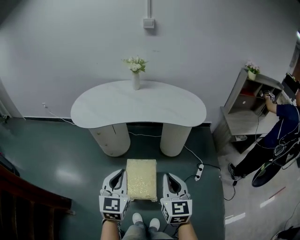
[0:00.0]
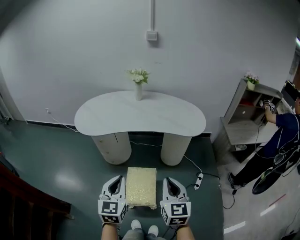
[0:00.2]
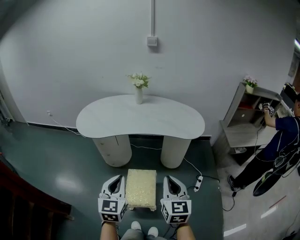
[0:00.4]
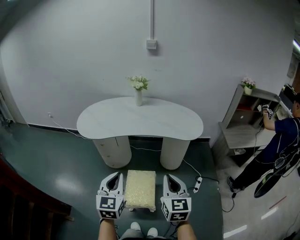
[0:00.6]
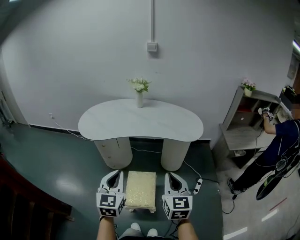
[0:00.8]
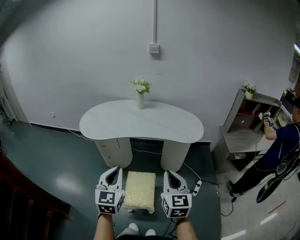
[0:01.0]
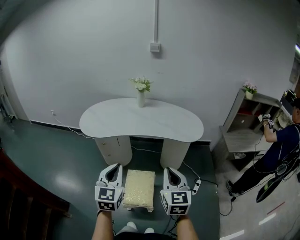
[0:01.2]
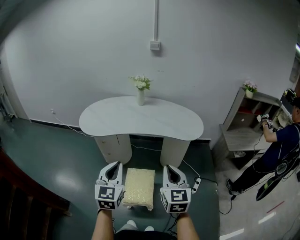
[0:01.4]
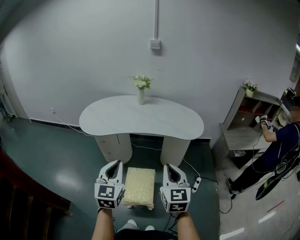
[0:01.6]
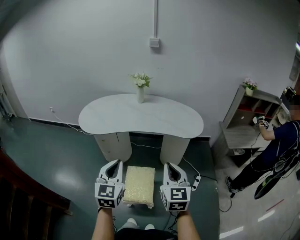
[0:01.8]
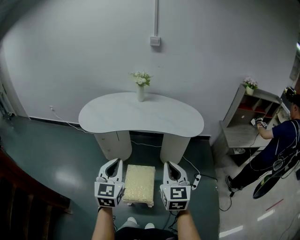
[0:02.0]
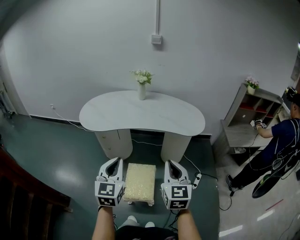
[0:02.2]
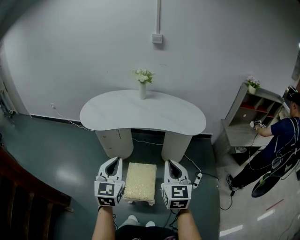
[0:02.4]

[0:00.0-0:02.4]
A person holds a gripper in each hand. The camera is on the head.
0:00.0 to 0:01.2: The two grippers go roughly 10 cm upward.
0:01.2 to 0:02.4: The grippers make only small movements.

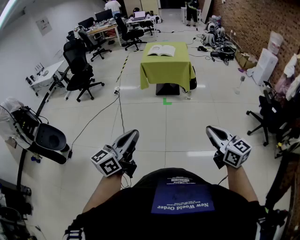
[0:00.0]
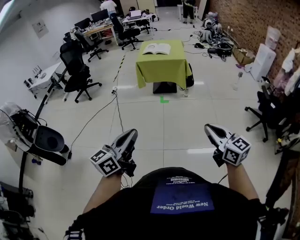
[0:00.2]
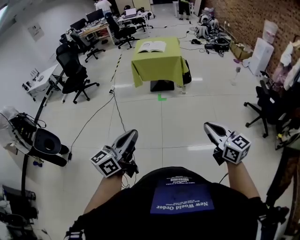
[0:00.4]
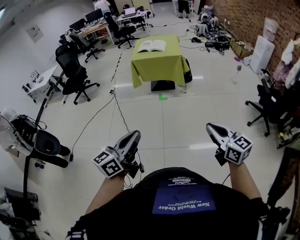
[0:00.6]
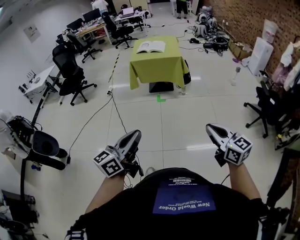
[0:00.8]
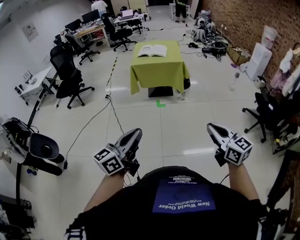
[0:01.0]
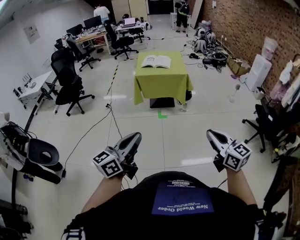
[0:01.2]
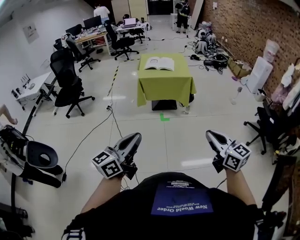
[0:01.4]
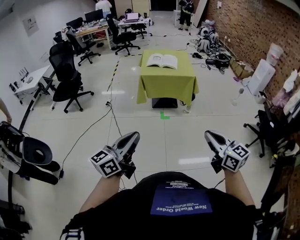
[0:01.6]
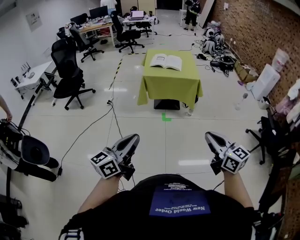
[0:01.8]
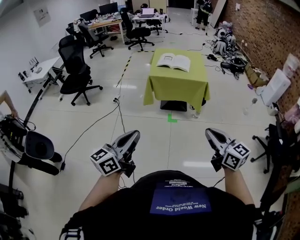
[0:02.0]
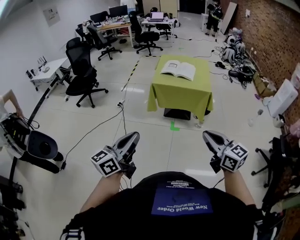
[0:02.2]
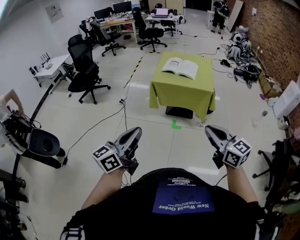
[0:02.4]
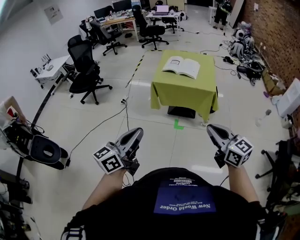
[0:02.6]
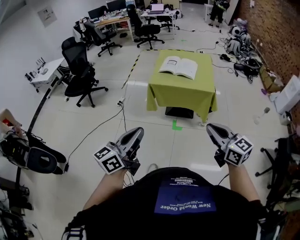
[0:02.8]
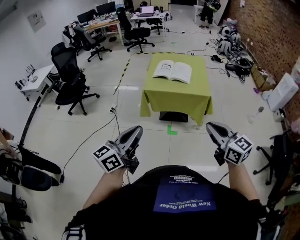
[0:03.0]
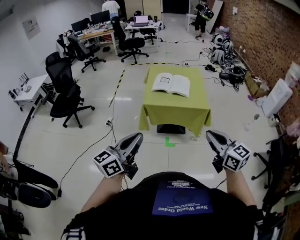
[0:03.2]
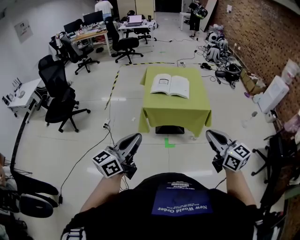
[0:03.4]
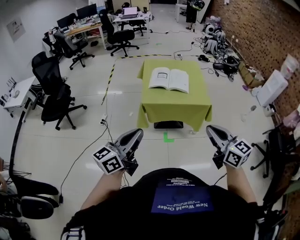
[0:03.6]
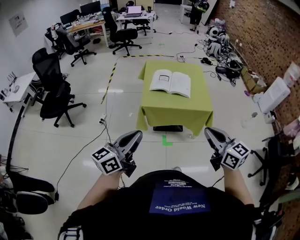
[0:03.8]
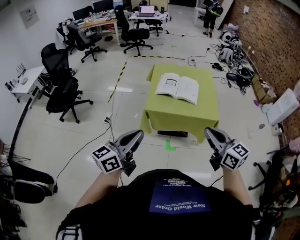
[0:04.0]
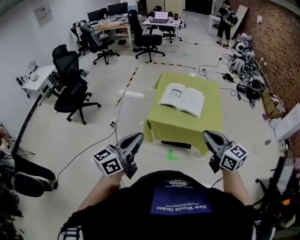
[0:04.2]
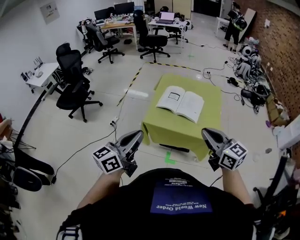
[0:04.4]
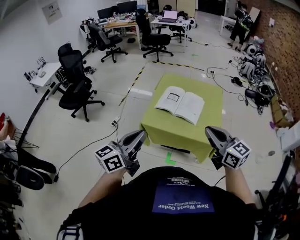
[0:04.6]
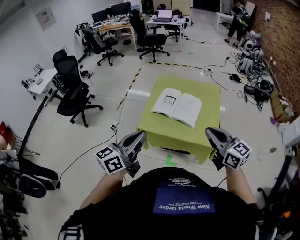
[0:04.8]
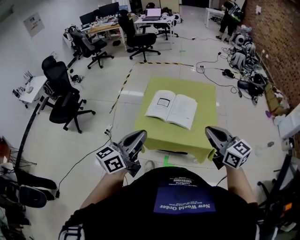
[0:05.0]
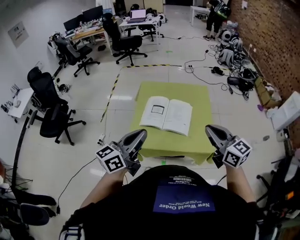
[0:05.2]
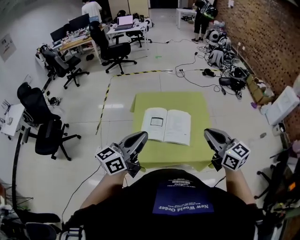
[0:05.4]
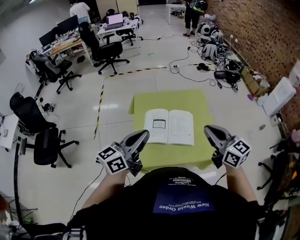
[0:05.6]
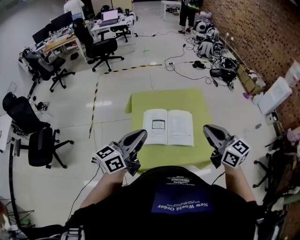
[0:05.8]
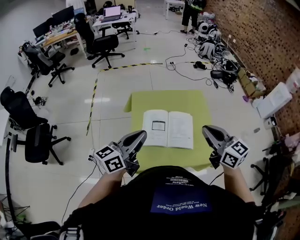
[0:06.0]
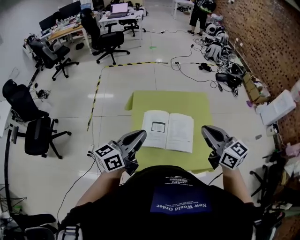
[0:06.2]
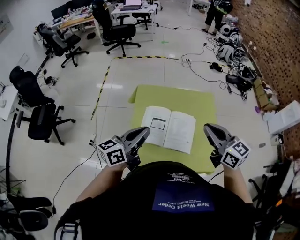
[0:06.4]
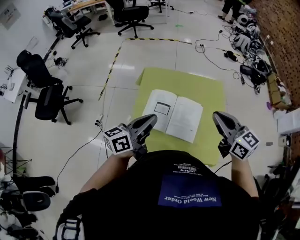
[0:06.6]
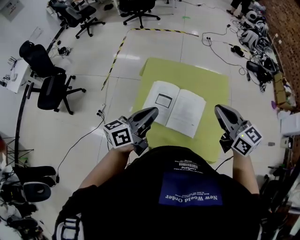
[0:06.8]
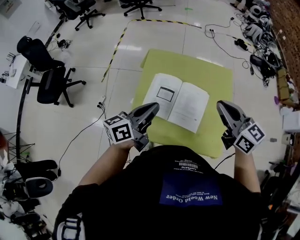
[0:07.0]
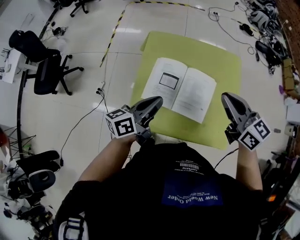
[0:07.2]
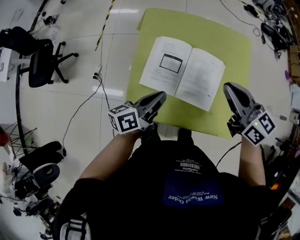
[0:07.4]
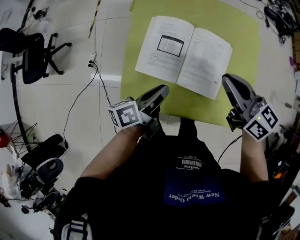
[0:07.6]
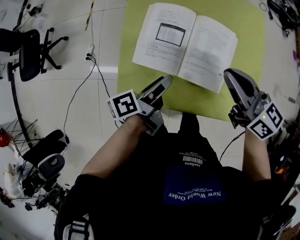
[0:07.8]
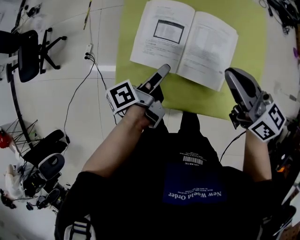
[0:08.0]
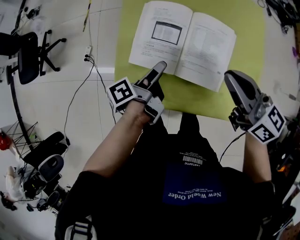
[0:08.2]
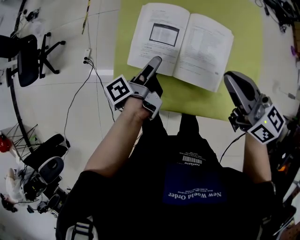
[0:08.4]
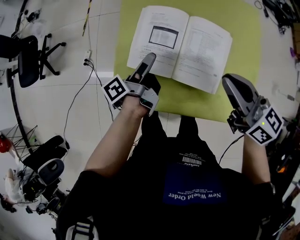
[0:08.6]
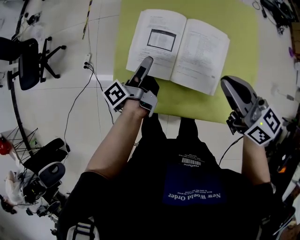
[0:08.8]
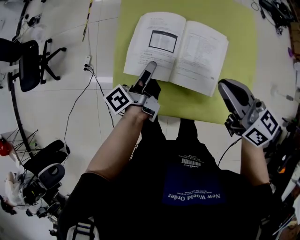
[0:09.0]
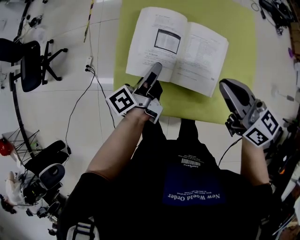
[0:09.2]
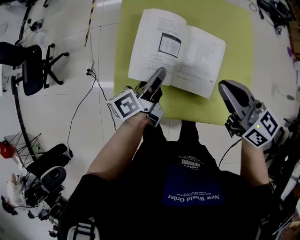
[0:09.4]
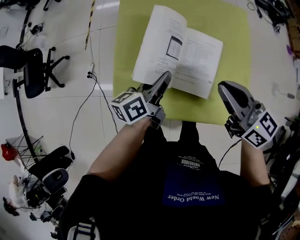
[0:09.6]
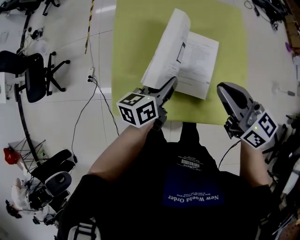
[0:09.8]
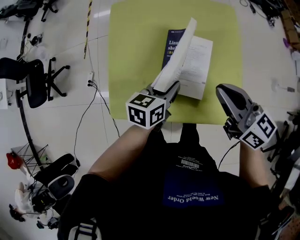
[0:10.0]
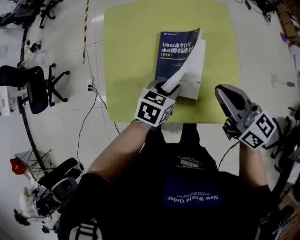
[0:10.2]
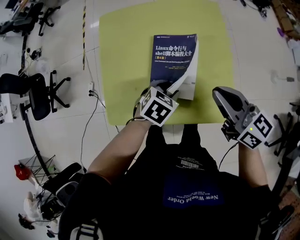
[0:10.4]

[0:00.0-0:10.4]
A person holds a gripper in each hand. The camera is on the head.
0:00.0 to 0:01.4: Both grippers travel together forward and to the left, roughly 25 cm.
0:01.4 to 0:03.0: The grippers both shift forward by approximately 40 cm.
0:03.0 to 0:04.4: The two grippers go roughly 30 cm forward.
0:04.4 to 0:06.0: The grippers both shift forward by roughly 30 cm. The right gripper rotates roughly 20 degrees, while the left gripper turns by some 30 degrees.
0:06.0 to 0:07.4: The left gripper travels downward and to the right by some 25 cm, and rotates approximately 40 degrees. Meanwhile the right gripper goes roughly 15 cm downward and forward, and changes its angle by roughly 20 degrees.
0:07.4 to 0:09.0: Both grippers move downward, about 5 cm. The left gripper turns by about 30 degrees, and opens and closes again.
0:09.0 to 0:10.4: The left gripper travels to the right by approximately 20 cm, and points its fingers some 50 degrees further downward. Meanwhile the right gripper shifts approximately 10 cm to the right.

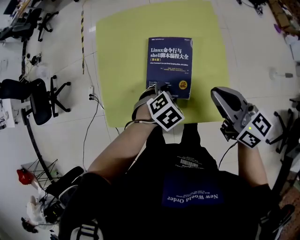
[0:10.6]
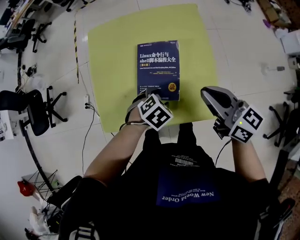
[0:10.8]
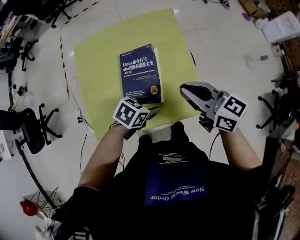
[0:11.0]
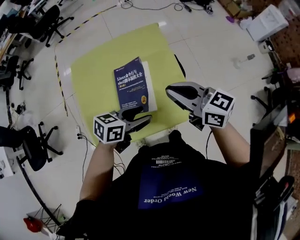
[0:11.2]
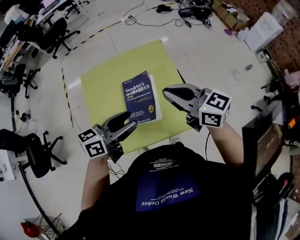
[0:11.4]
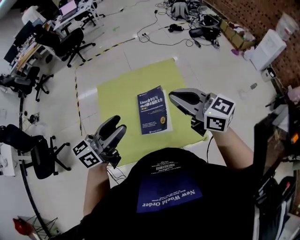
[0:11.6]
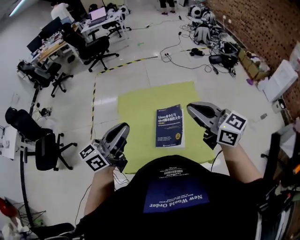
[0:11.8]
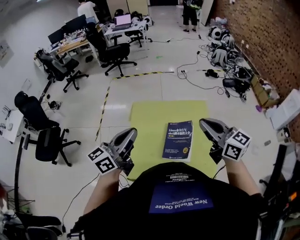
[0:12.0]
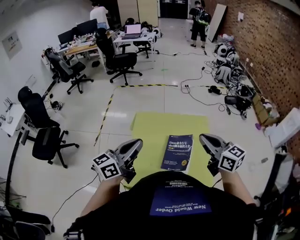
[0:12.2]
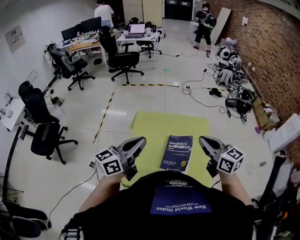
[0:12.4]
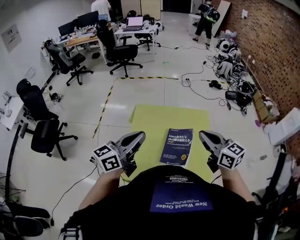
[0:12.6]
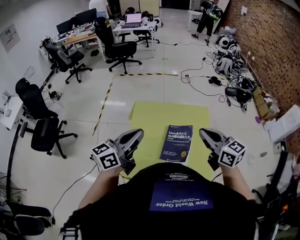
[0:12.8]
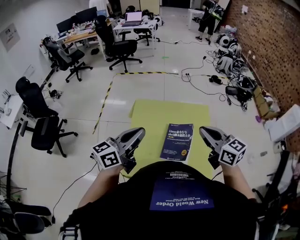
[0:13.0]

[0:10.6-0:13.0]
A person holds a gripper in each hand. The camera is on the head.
0:10.6 to 0:11.8: The left gripper is displaced upward by roughly 40 cm, points its fingers roughly 80 degrees further upward, and closes its fingers. The right gripper moves upward, approximately 20 cm, and rotates roughly 20 degrees.
0:11.8 to 0:13.0: The right gripper ends up roughly 5 cm from where it was.

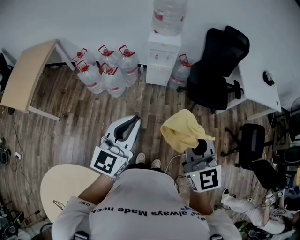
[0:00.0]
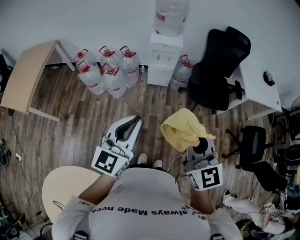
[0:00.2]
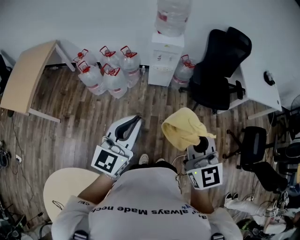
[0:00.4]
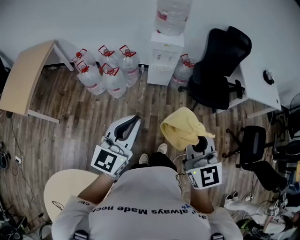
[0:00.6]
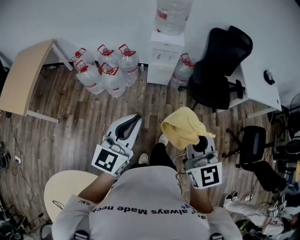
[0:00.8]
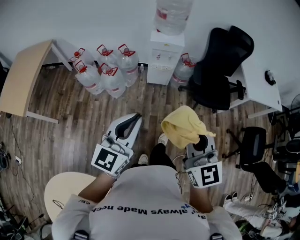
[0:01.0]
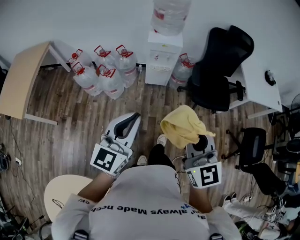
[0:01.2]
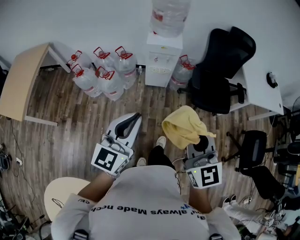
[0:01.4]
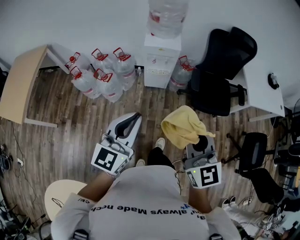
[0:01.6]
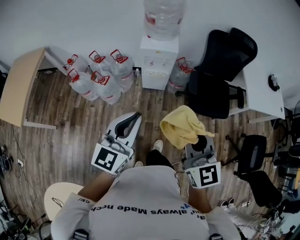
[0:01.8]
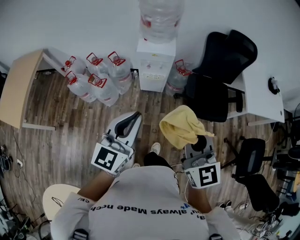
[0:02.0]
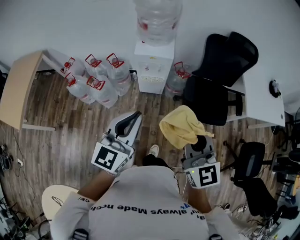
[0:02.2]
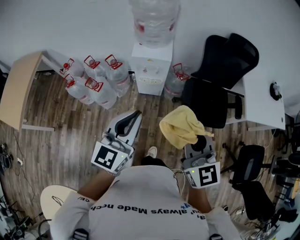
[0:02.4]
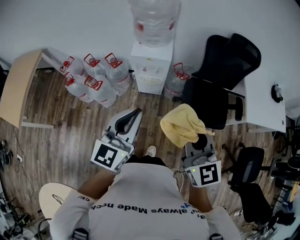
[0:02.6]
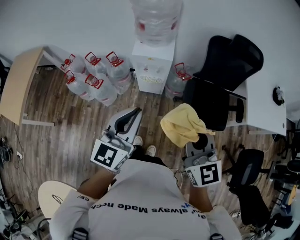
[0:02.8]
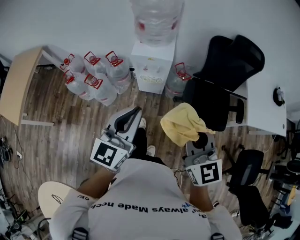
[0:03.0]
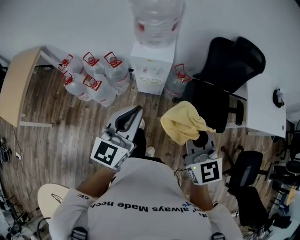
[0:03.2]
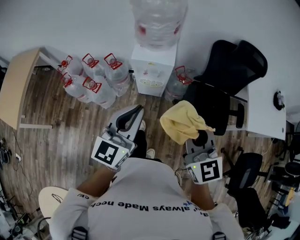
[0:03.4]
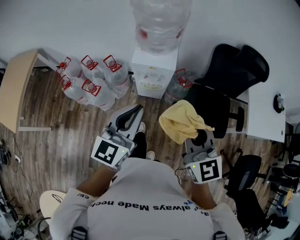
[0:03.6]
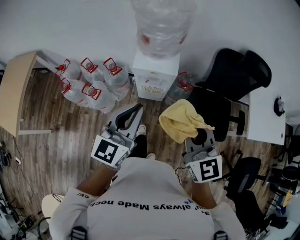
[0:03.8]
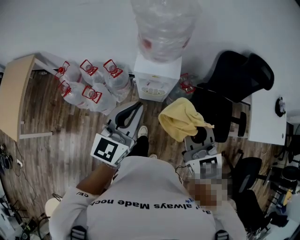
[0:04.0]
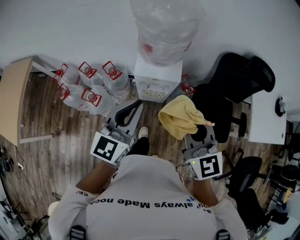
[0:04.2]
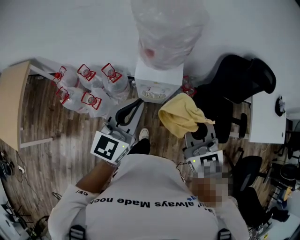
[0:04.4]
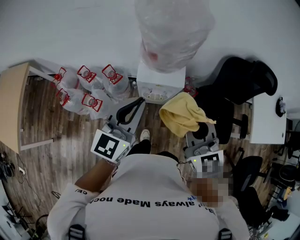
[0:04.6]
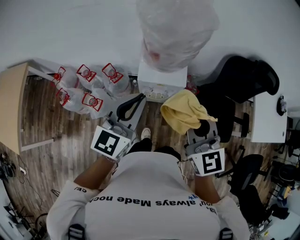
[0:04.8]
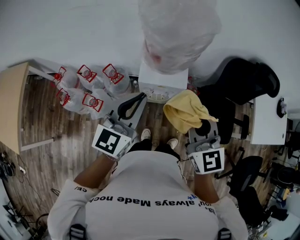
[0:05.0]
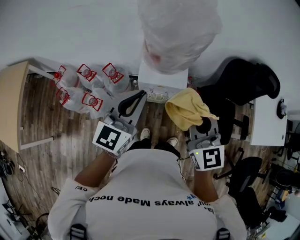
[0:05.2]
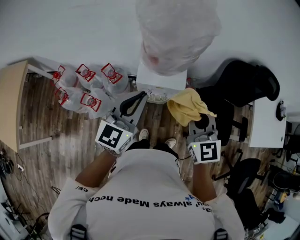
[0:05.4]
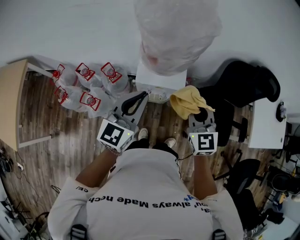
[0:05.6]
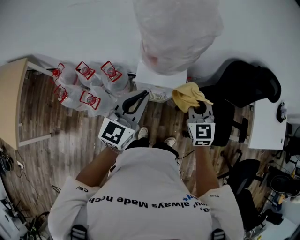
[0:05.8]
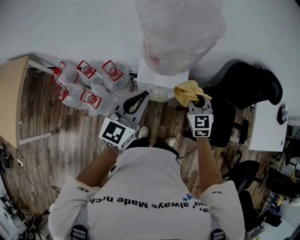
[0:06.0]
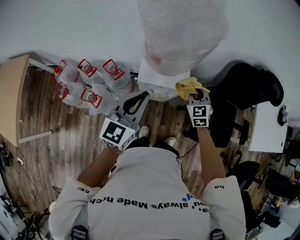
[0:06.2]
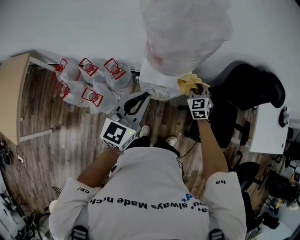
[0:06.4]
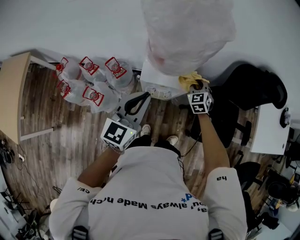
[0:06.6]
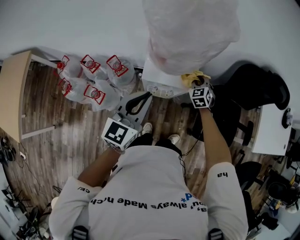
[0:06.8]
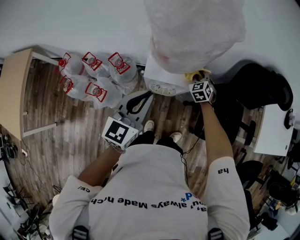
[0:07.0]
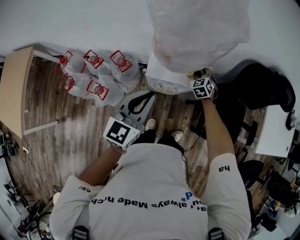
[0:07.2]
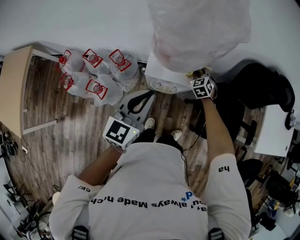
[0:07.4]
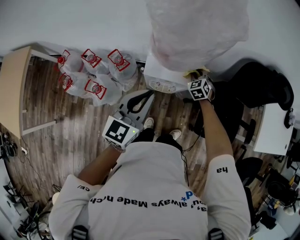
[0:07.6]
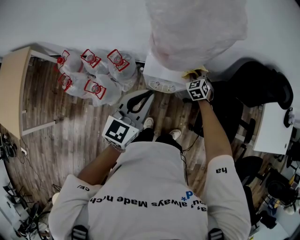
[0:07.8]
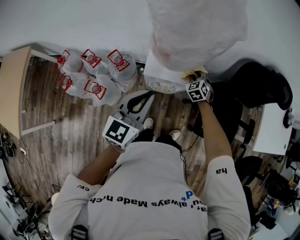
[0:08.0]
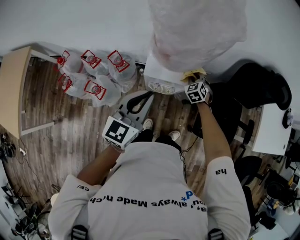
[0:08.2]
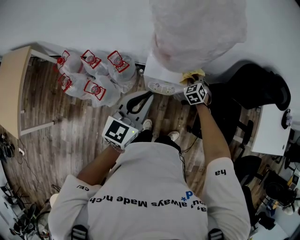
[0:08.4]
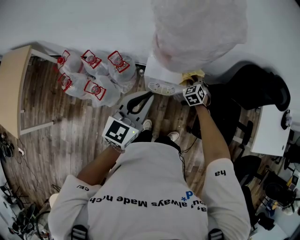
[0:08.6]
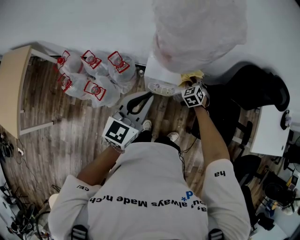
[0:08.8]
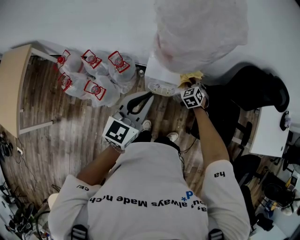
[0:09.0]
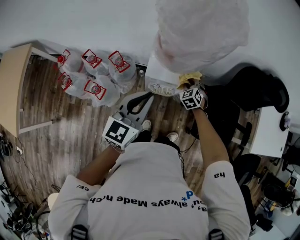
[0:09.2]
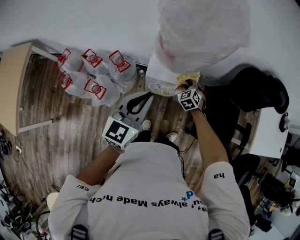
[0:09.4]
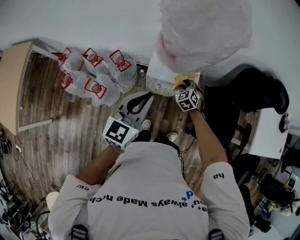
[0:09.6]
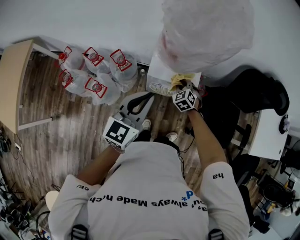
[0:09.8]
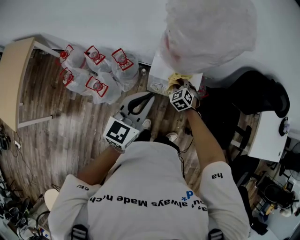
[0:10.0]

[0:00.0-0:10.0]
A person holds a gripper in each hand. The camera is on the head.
0:00.0 to 0:01.4: Both grippers travel together forward, roughly 15 cm.
0:01.4 to 0:02.8: The grippers both shift forward and to the right by some 25 cm.
0:02.8 to 0:04.2: Both grippers move forward, approximately 25 cm.
0:04.2 to 0:05.8: The right gripper is displaced forward and downward by roughly 20 cm. The left gripper goes about 10 cm forward and downward.
0:05.8 to 0:07.2: The right gripper goes some 30 cm downward and forward, and changes its angle by about 30 degrees.
0:07.2 to 0:08.6: The right gripper shifts approximately 5 cm backward.
0:08.6 to 0:10.0: The right gripper shifts roughly 10 cm to the left and backward.
